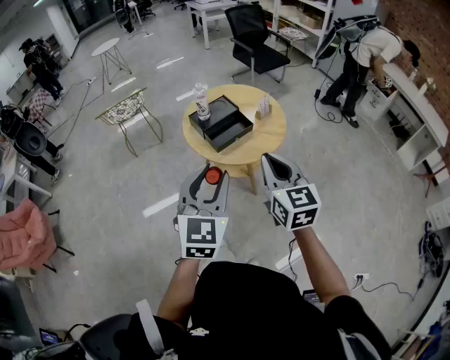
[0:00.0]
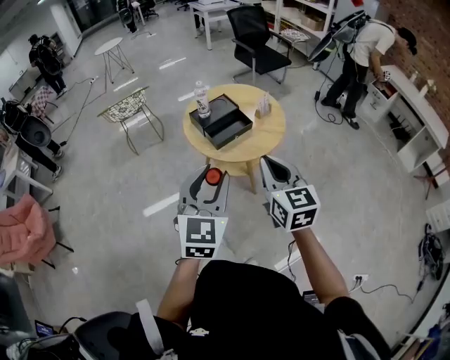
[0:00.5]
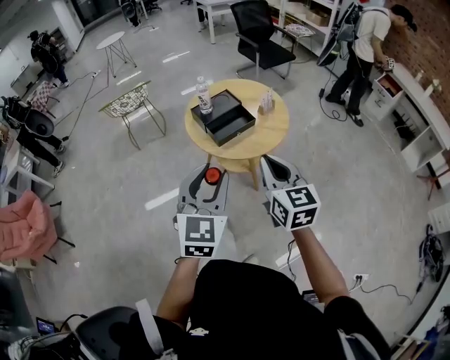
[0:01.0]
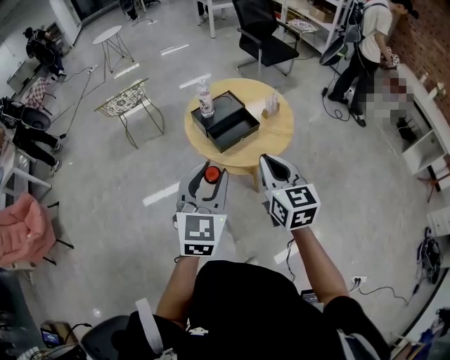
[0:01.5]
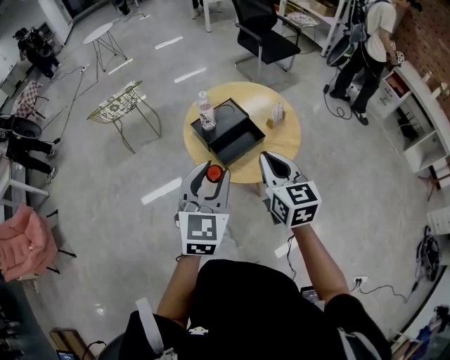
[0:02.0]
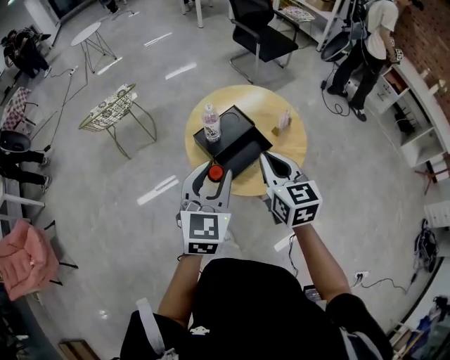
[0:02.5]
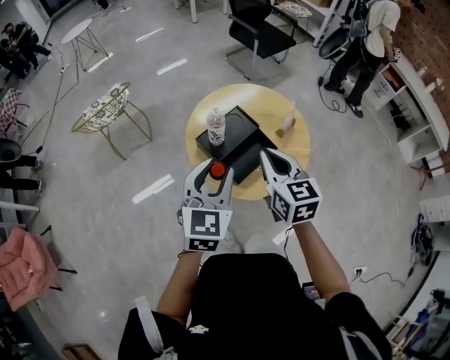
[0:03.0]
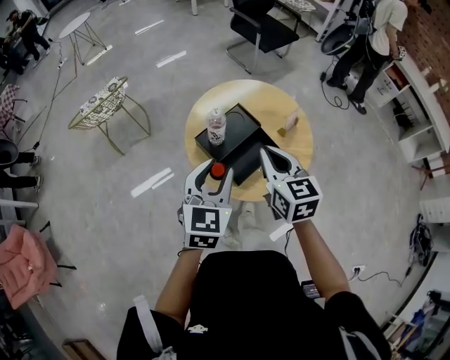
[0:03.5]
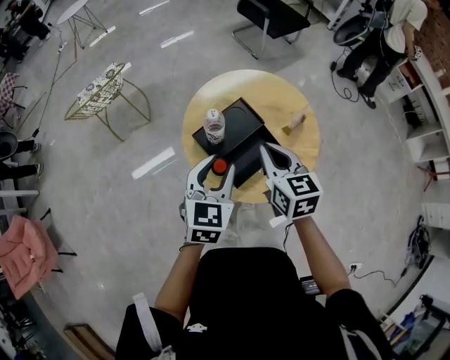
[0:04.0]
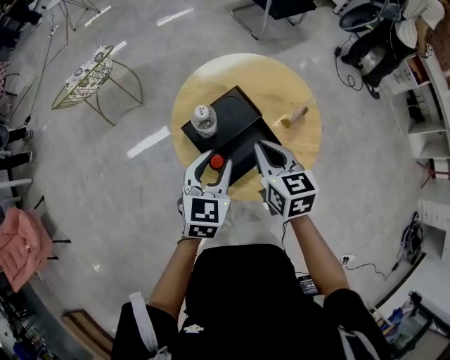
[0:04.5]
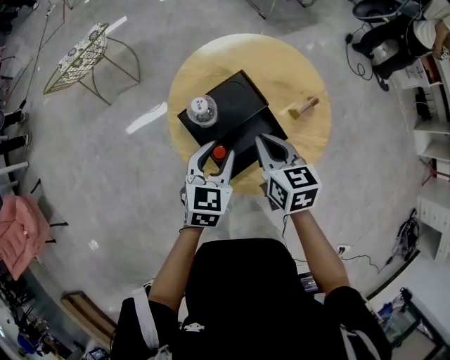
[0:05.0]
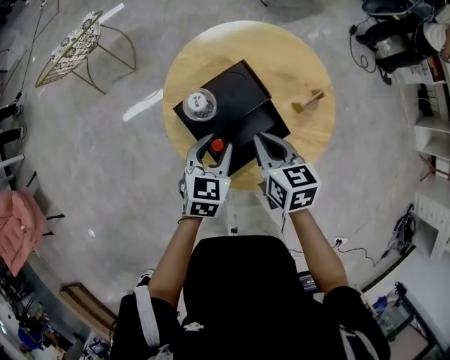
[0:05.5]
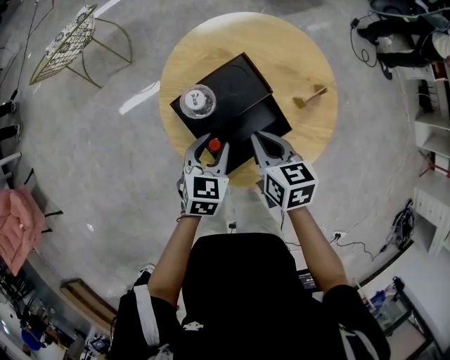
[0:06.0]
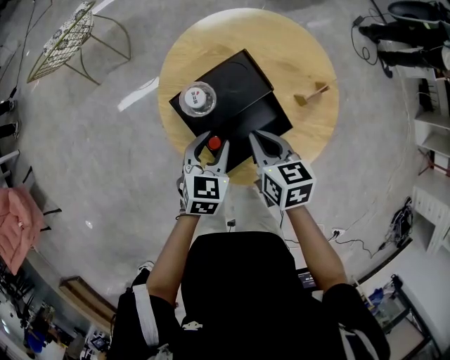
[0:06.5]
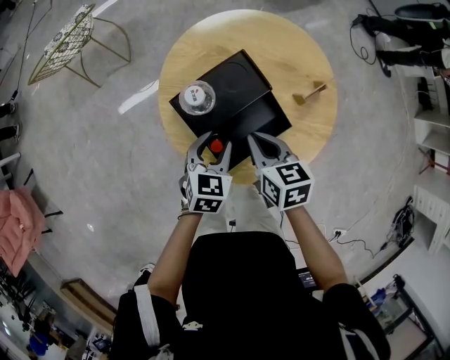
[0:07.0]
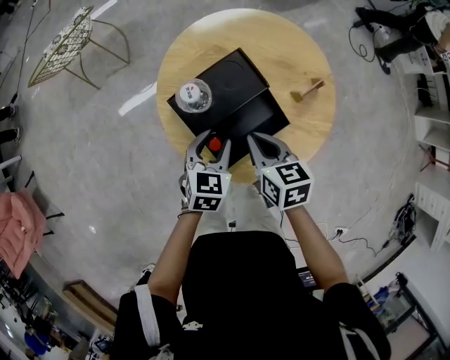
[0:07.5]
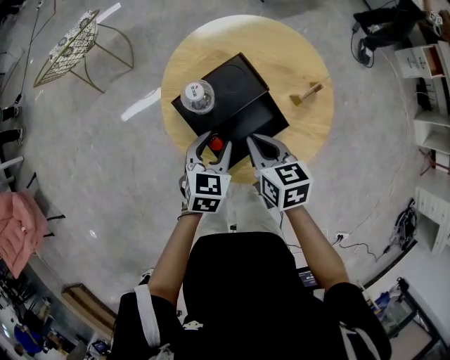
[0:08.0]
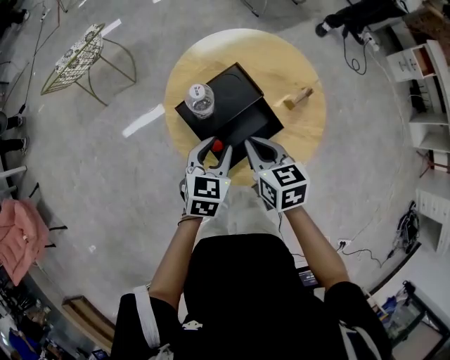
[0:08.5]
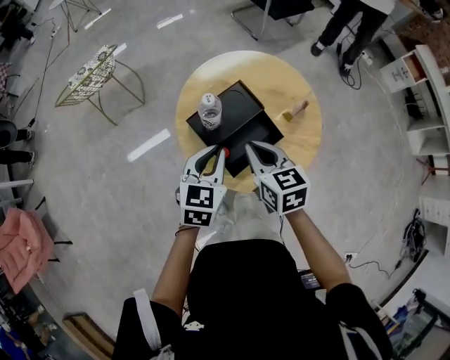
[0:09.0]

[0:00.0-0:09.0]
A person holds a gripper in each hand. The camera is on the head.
0:00.0 to 0:02.0: Both grippers move forward, roughly 20 cm.
0:02.0 to 0:04.5: The two grippers go about 30 cm forward and downward.
0:04.5 to 0:07.0: Both grippers move downward, approximately 15 cm.
0:07.0 to 0:09.0: Both grippers move upward, roughly 15 cm. The left gripper closes up.

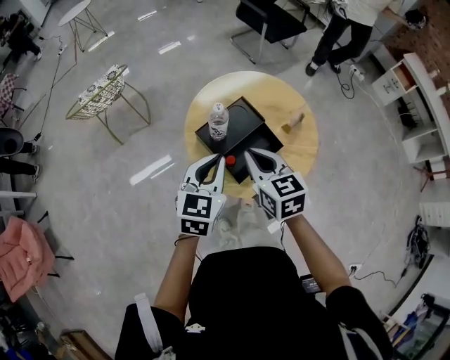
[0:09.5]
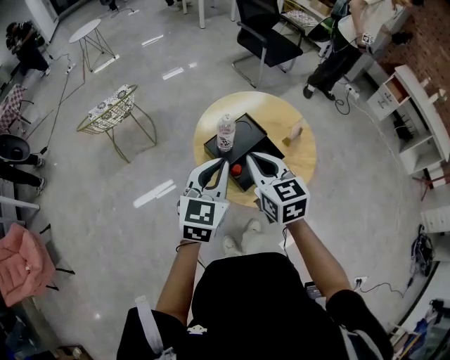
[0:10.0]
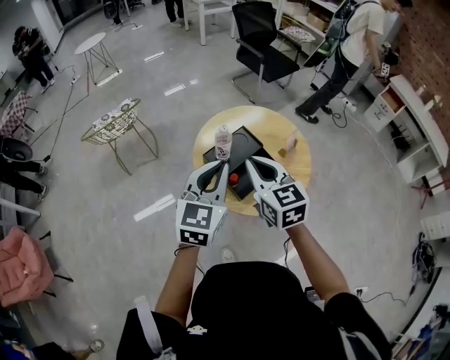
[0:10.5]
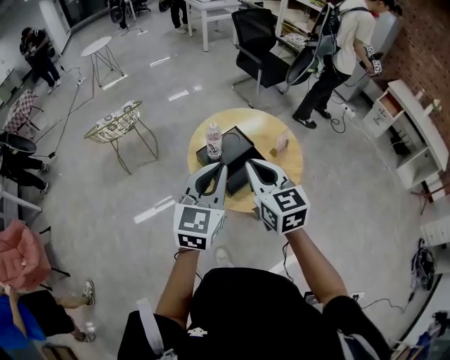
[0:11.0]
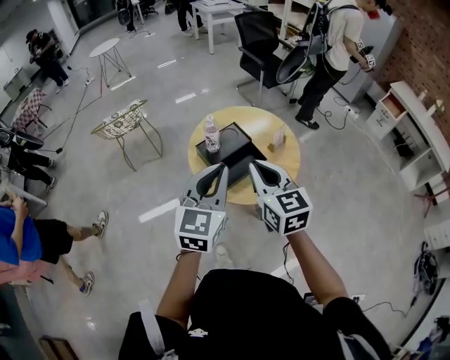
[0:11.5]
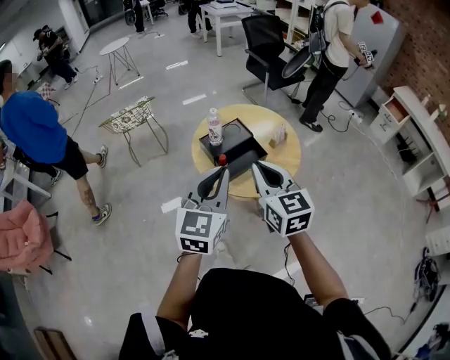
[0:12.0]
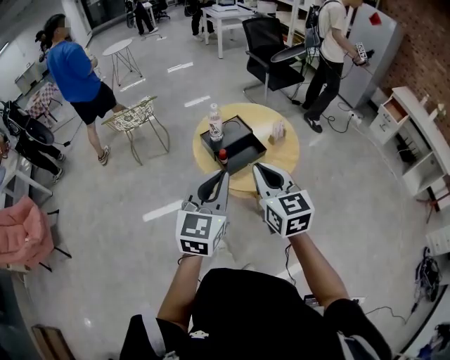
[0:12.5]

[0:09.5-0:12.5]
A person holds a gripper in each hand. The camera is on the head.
0:09.5 to 0:11.0: The grippers both shift upward and backward by roughly 15 cm.
0:11.0 to 0:12.5: Both grippers travel together backward, roughly 15 cm.

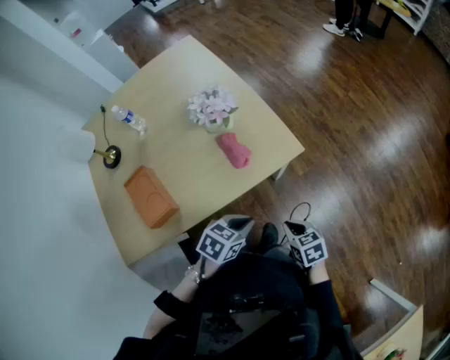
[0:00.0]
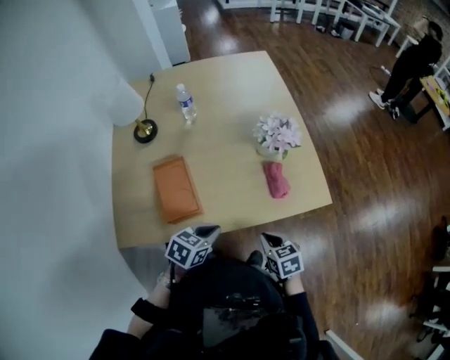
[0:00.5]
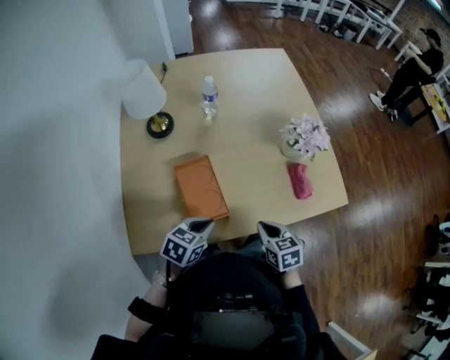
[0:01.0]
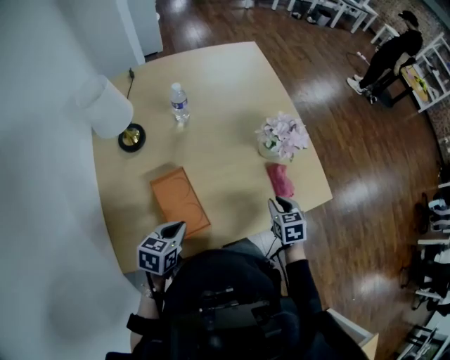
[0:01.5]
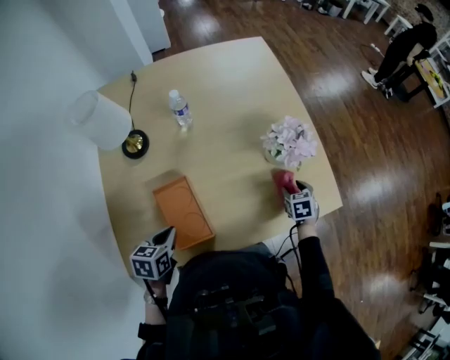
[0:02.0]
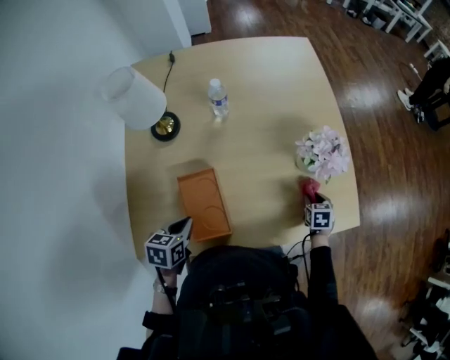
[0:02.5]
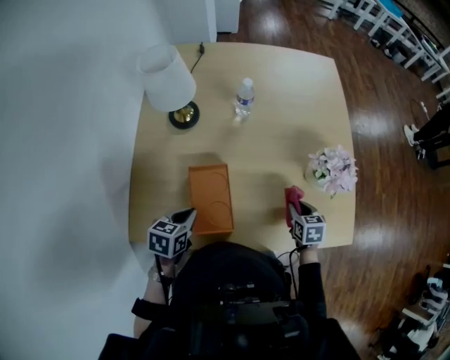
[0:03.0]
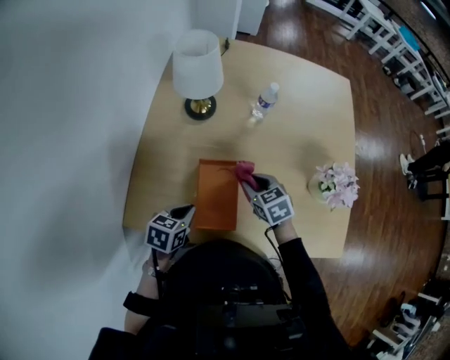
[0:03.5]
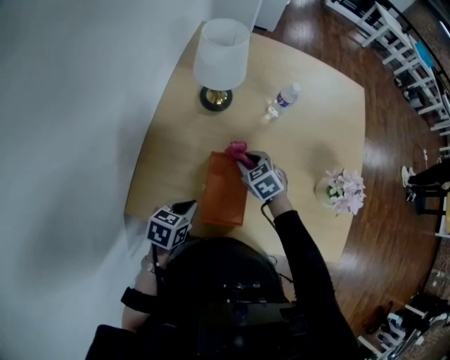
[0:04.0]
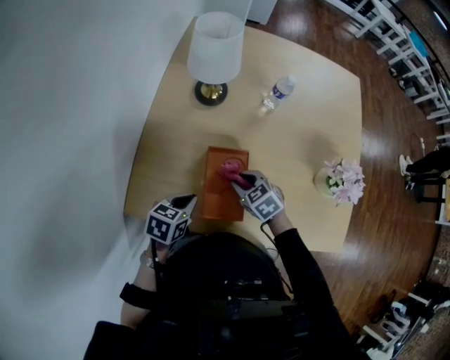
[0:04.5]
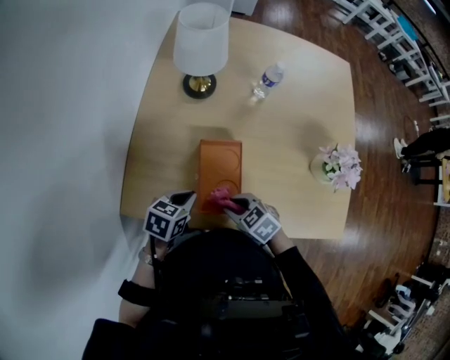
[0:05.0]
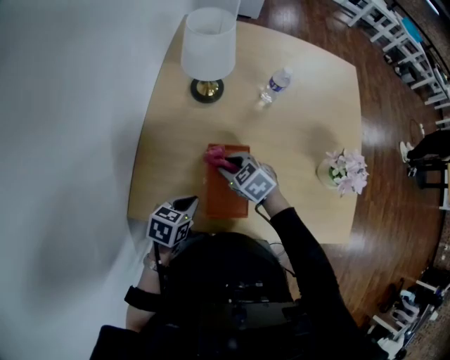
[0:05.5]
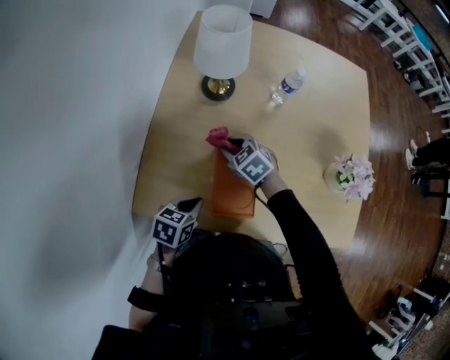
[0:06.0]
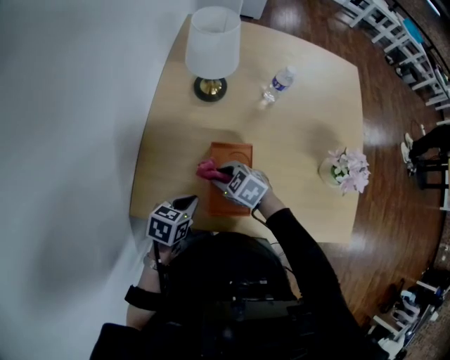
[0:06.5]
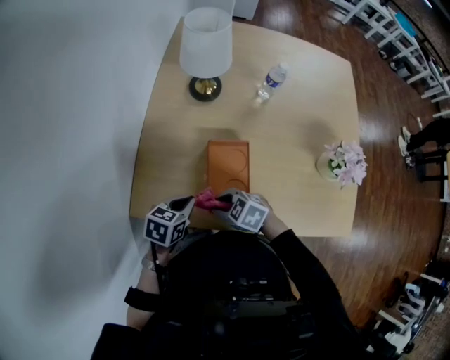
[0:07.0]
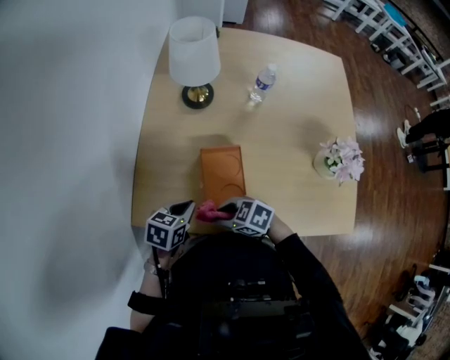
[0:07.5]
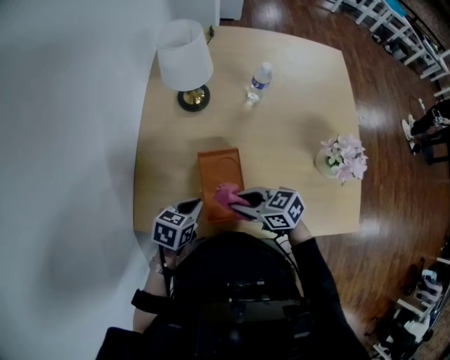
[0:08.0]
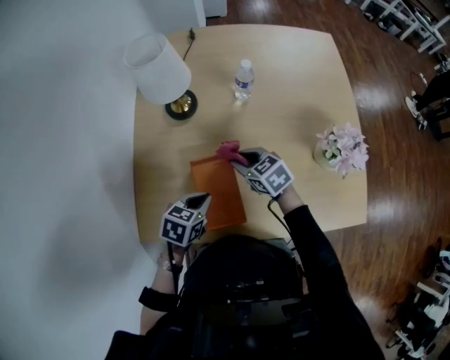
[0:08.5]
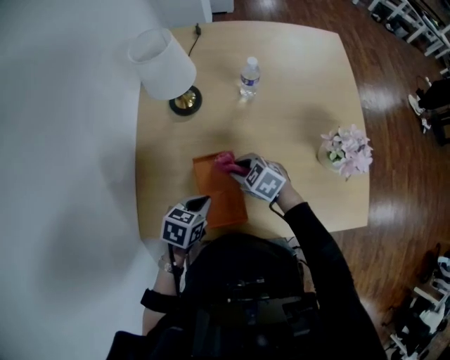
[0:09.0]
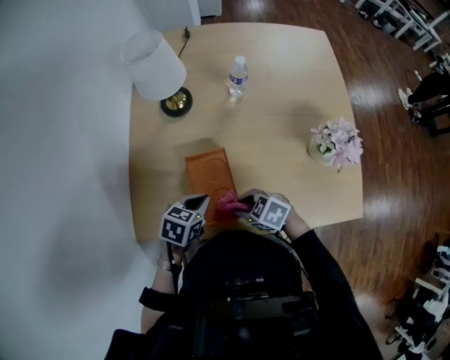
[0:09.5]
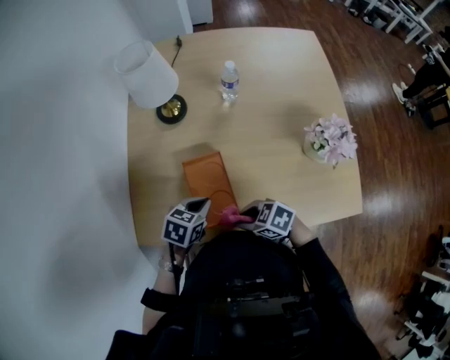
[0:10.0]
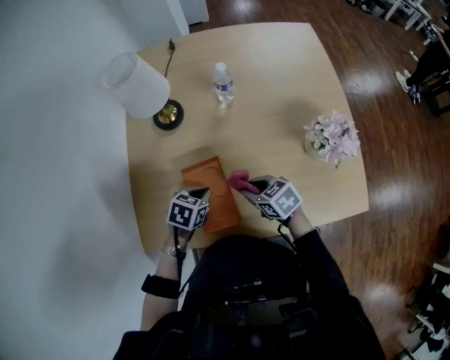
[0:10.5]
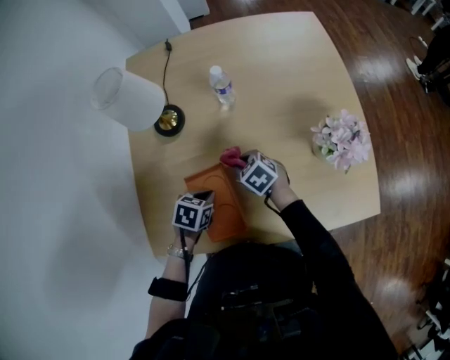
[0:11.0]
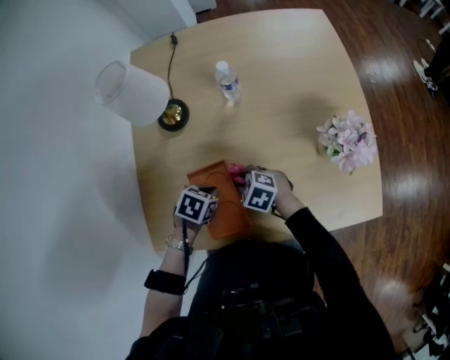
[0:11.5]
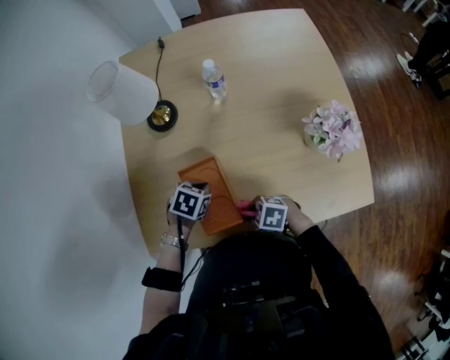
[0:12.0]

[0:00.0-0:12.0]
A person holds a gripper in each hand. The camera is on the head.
0:00.0 to 0:02.0: The right gripper goes roughly 35 cm forward and to the left, changes its angle by approximately 20 degrees, and opens; the left gripper travels to the left by approximately 50 cm, and changes its angle by roughly 40 degrees.
0:02.0 to 0:04.0: The right gripper changes place by roughly 40 cm, twists some 50 degrees counterclockwise, seen from behind, and closes its fingers; the left gripper shifts by about 5 cm.
0:04.0 to 0:06.0: The right gripper goes roughly 10 cm to the left, and travels backward and back again, about 20 cm each way.
0:06.0 to 0:08.0: The right gripper ends up roughly 20 cm from where it was, and rotates some 40 degrees.
0:08.0 to 0:10.0: The left gripper ends up approximately 5 cm from where it was.
0:10.0 to 0:12.0: The right gripper travels downward by about 5 cm; the left gripper shifts by roughly 10 cm.

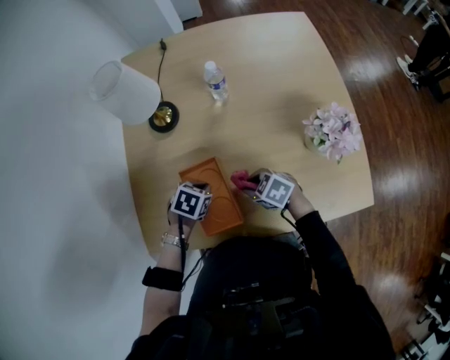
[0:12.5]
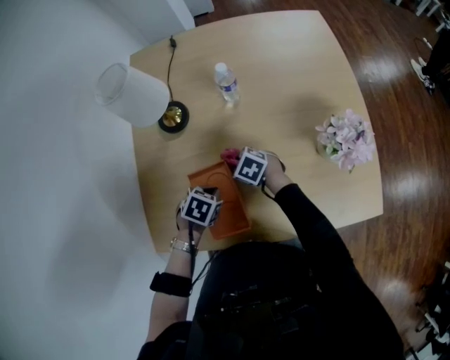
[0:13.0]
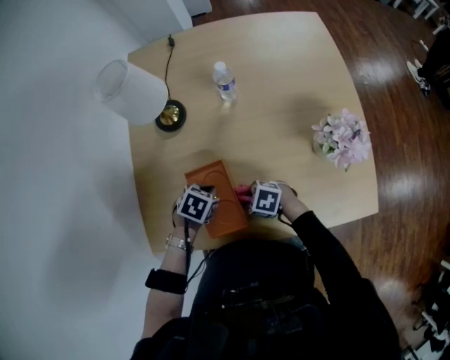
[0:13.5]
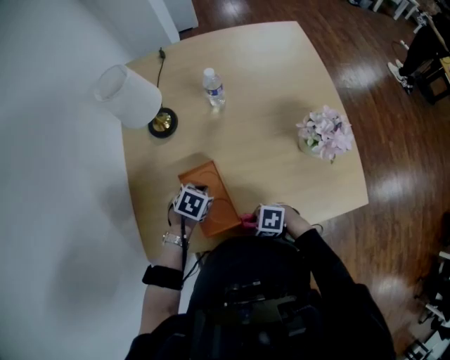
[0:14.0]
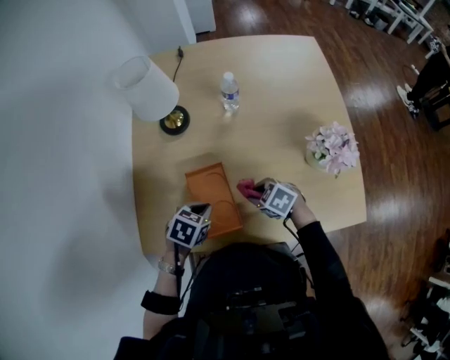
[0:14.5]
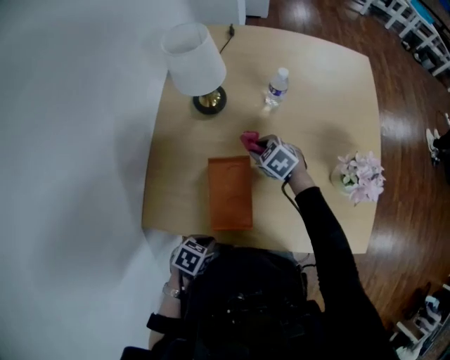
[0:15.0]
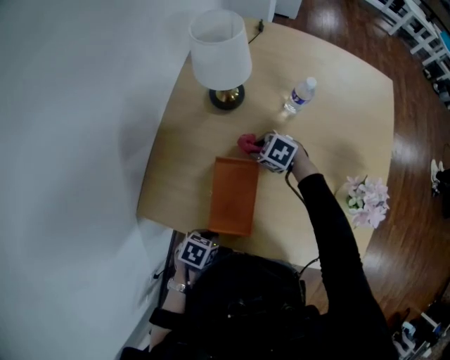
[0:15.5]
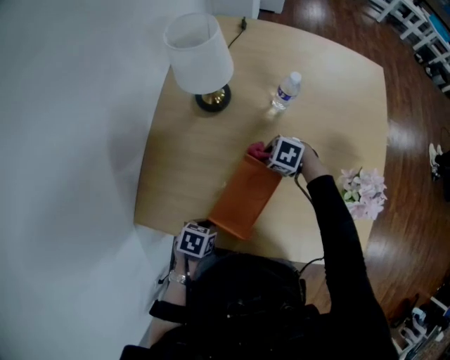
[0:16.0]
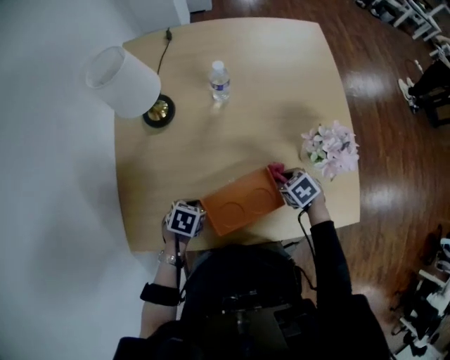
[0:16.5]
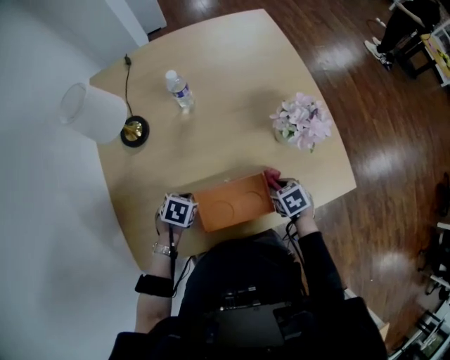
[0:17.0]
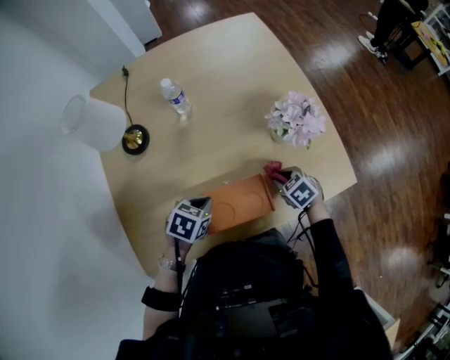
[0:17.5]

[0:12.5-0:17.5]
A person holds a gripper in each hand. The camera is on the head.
0:12.5 to 0:15.0: The left gripper changes place by roughly 20 cm, and turns by roughly 20 degrees, while the right gripper shifts by roughly 15 cm.
0:15.0 to 0:17.5: The right gripper changes place by about 30 cm, and rotates approximately 40 degrees, while the left gripper shifts by some 20 cm, and swivels about 30 degrees.
